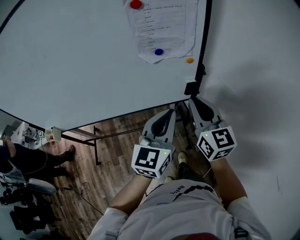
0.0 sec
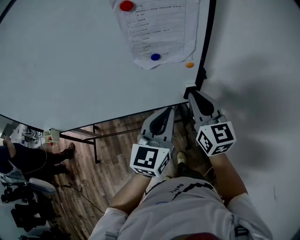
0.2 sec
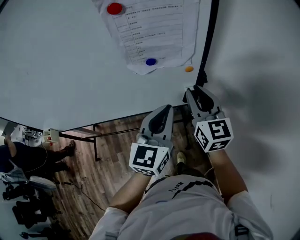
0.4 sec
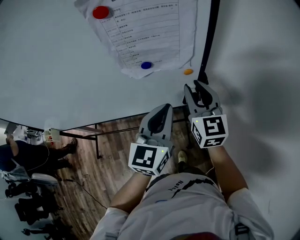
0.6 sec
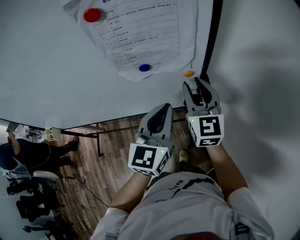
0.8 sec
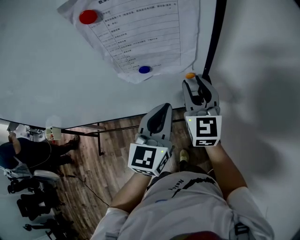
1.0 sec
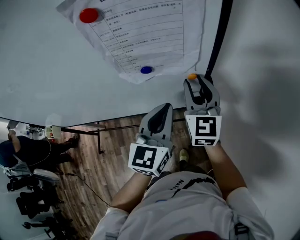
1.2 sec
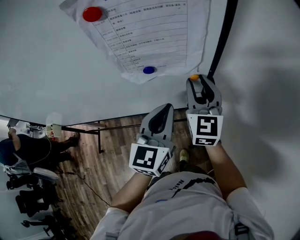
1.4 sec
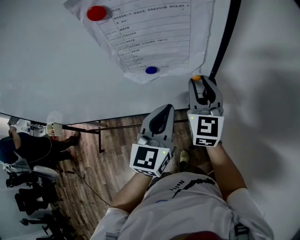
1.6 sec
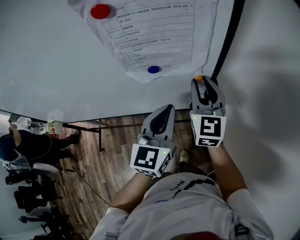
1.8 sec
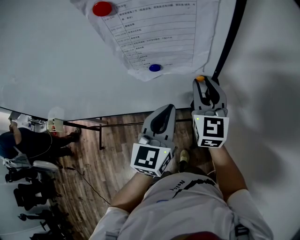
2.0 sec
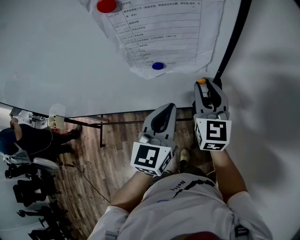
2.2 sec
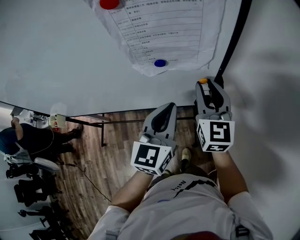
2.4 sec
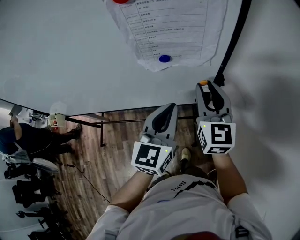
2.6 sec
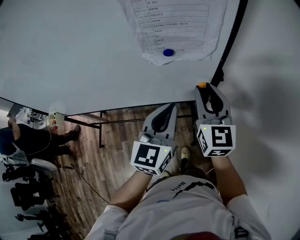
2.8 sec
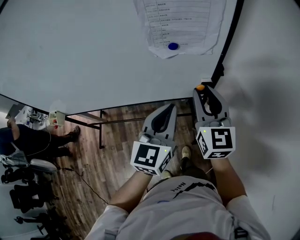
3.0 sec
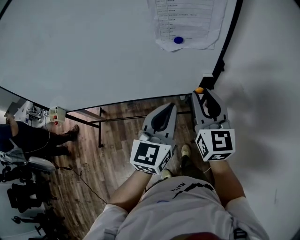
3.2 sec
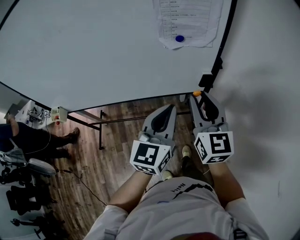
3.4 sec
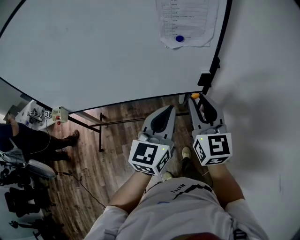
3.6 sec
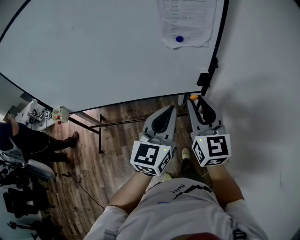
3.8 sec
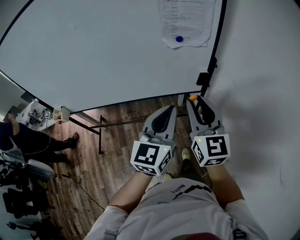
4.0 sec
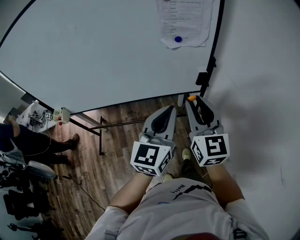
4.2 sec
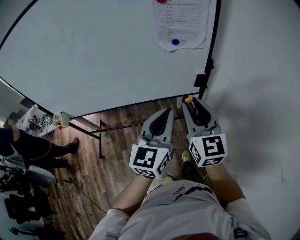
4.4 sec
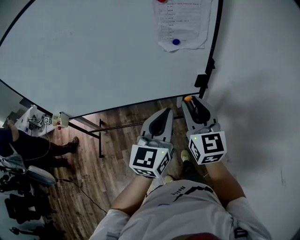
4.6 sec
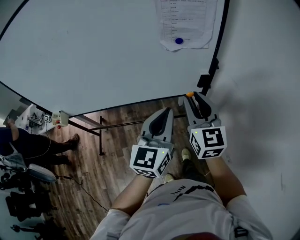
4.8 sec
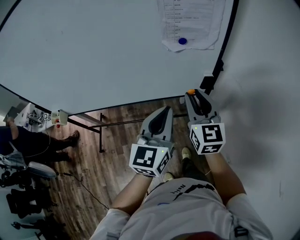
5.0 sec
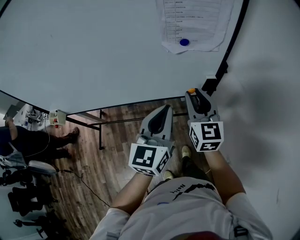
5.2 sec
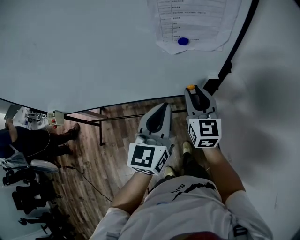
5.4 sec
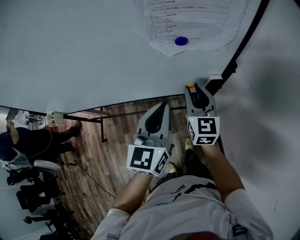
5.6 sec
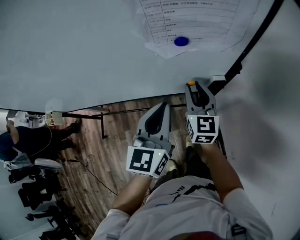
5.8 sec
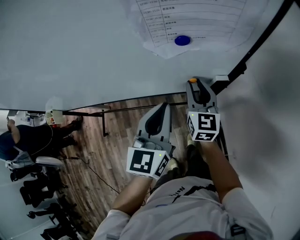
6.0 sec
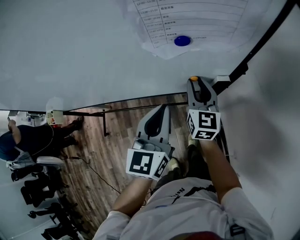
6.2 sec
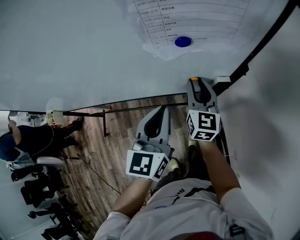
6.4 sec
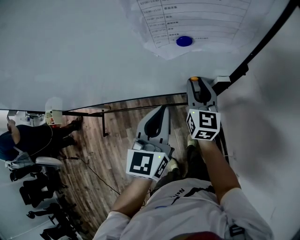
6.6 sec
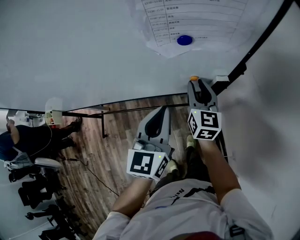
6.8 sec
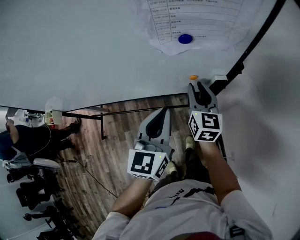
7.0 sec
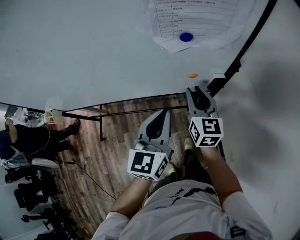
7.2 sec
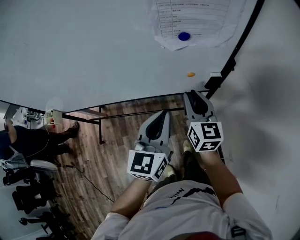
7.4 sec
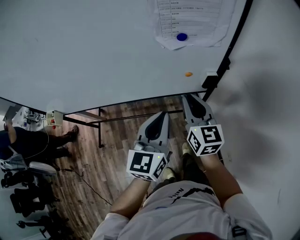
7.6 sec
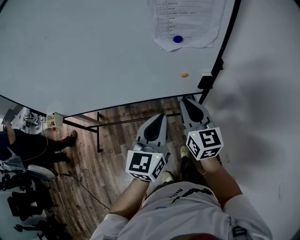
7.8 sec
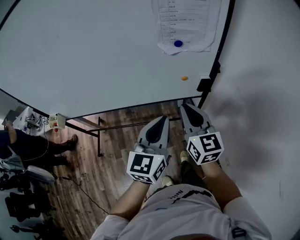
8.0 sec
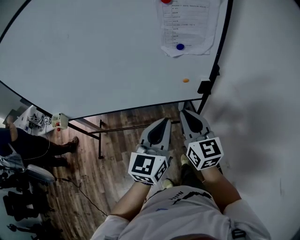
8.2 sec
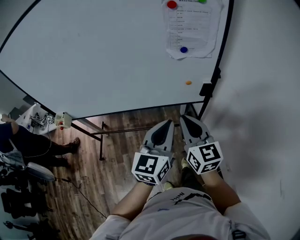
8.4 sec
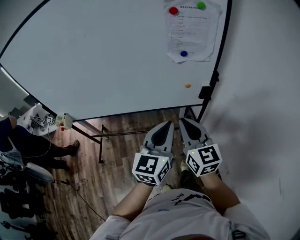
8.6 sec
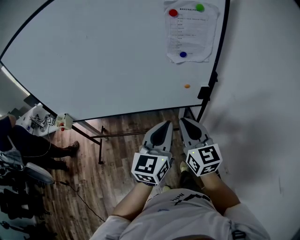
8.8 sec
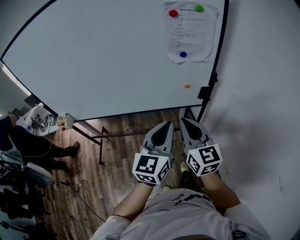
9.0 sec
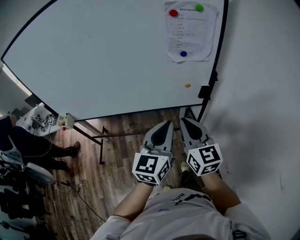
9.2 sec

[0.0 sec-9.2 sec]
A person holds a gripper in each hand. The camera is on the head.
0.0 sec to 1.6 sec: Both grippers move forward, roughly 15 cm. The right gripper opens.
1.6 sec to 3.0 sec: Both grippers travel together backward, some 10 cm.
3.0 sec to 4.6 sec: The left gripper travels backward by approximately 10 cm; the right gripper moves backward and to the left, approximately 15 cm.
4.6 sec to 6.2 sec: The left gripper travels forward and downward by some 20 cm; the right gripper goes approximately 30 cm forward and downward.
6.2 sec to 7.6 sec: The left gripper is displaced backward by approximately 10 cm; the right gripper goes about 15 cm backward and upward.
7.6 sec to 9.2 sec: The two grippers go about 15 cm backward and upward.

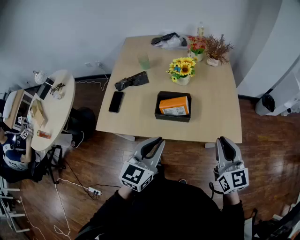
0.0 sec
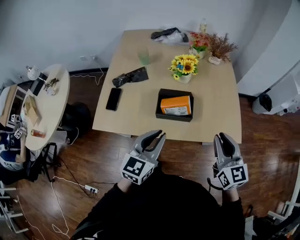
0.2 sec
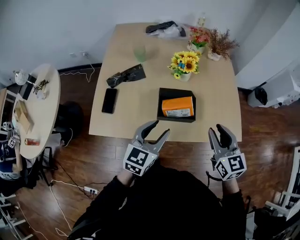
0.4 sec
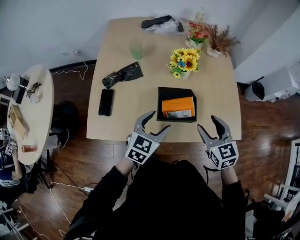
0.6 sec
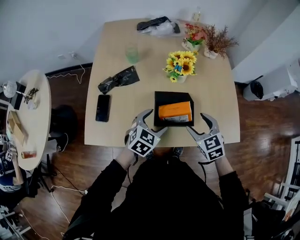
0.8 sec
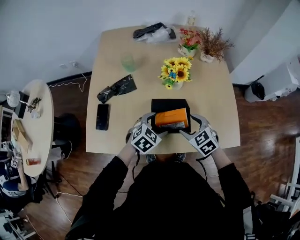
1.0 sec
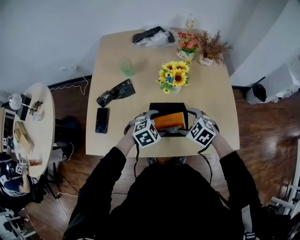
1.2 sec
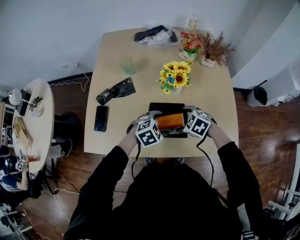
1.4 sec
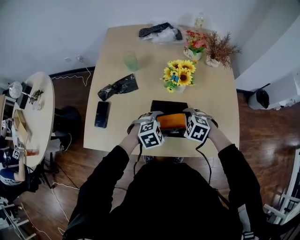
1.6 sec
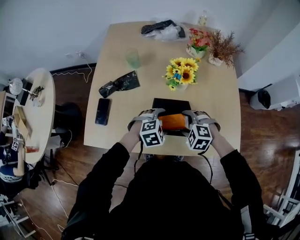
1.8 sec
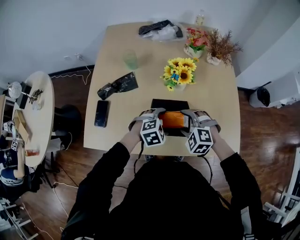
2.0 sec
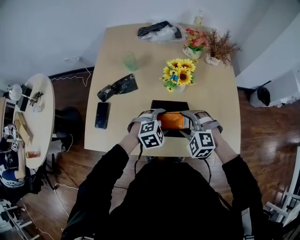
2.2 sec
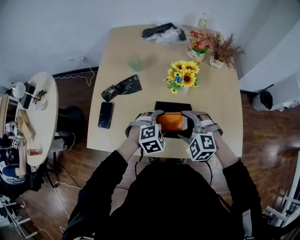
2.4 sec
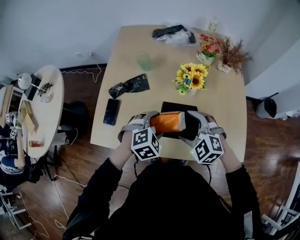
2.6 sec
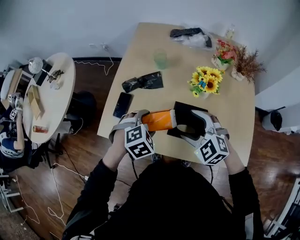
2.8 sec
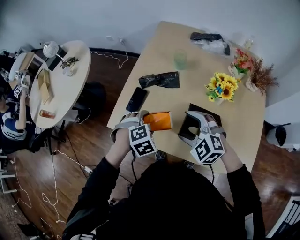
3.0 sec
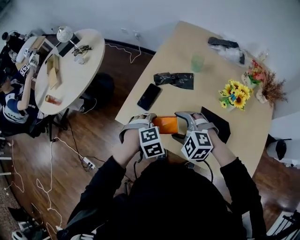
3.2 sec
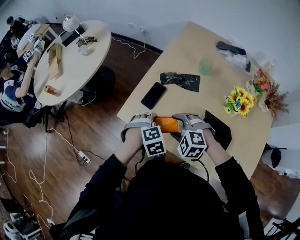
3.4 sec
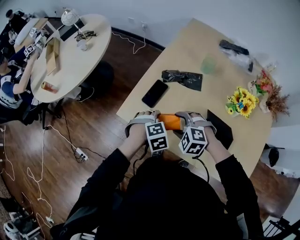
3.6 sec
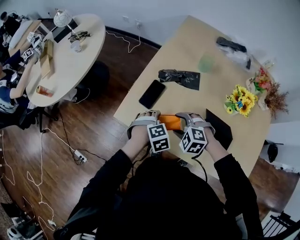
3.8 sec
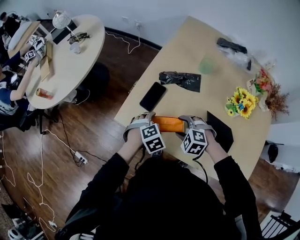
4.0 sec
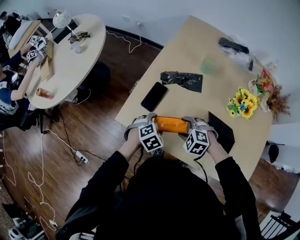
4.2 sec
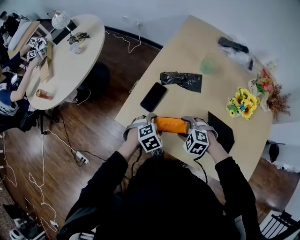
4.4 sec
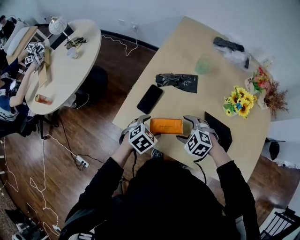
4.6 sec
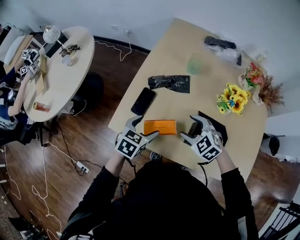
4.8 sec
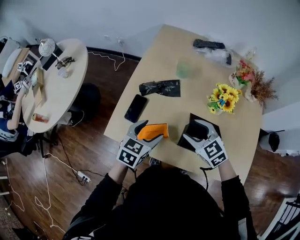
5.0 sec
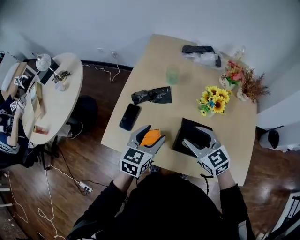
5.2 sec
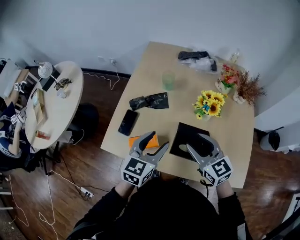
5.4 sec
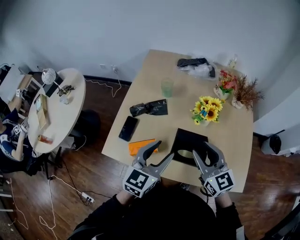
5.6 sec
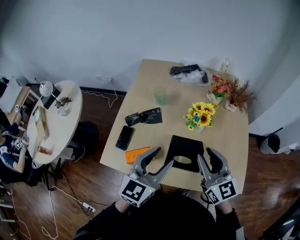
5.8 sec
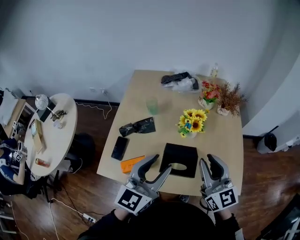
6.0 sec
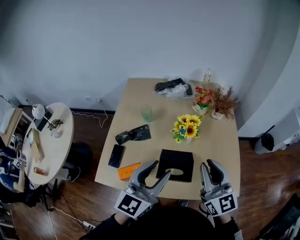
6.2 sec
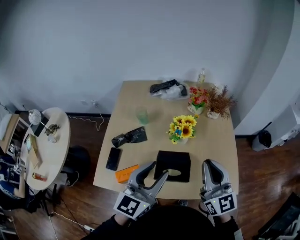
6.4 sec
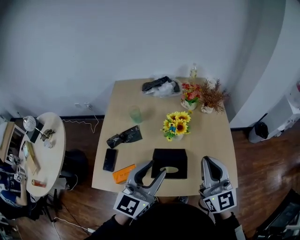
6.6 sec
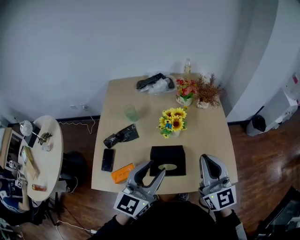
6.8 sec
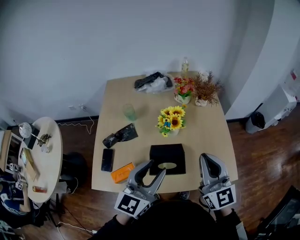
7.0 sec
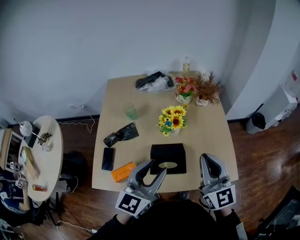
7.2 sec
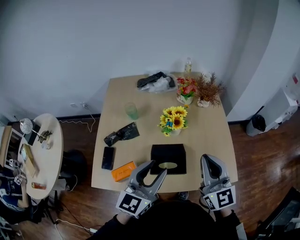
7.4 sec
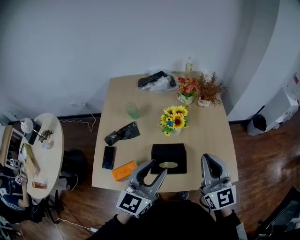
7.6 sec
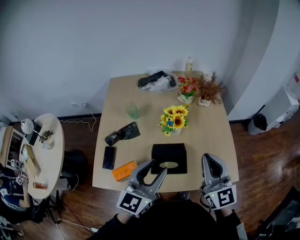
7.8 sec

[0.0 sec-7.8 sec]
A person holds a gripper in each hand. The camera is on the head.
0.0 sec to 1.6 sec: The left gripper shifts by approximately 30 cm, points its fingers about 40 degrees further downward, and opens up, while the right gripper ends up roughly 40 cm from where it was, points its fingers about 60 degrees further downward, and opens.
1.6 sec to 3.2 sec: The left gripper changes place by some 25 cm, and swivels approximately 40 degrees; the right gripper changes place by approximately 25 cm, and swivels about 40 degrees.
3.2 sec to 4.6 sec: The right gripper is displaced downward by roughly 10 cm; the left gripper heads downward, covering some 5 cm, and changes its angle by roughly 30 degrees.
4.6 sec to 6.2 sec: Both grippers move upward and to the right, about 40 cm. The right gripper tips its fingers upward by roughly 60 degrees, and closes. Meanwhile the left gripper angles its fingers upward, by approximately 60 degrees, and closes its fingers.
6.2 sec to 7.8 sec: The grippers move only a little.

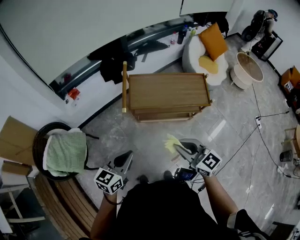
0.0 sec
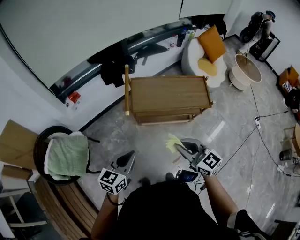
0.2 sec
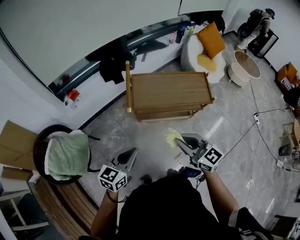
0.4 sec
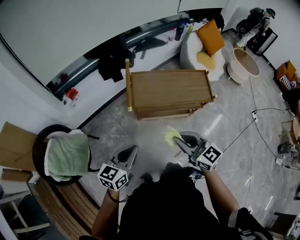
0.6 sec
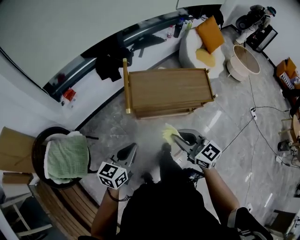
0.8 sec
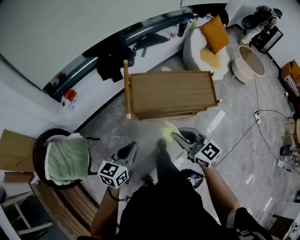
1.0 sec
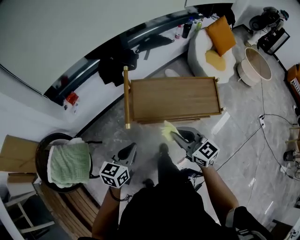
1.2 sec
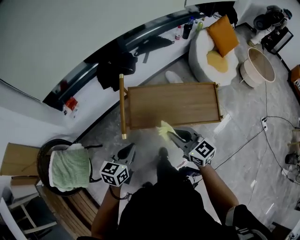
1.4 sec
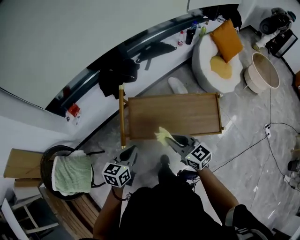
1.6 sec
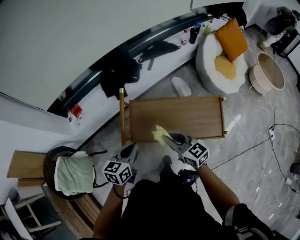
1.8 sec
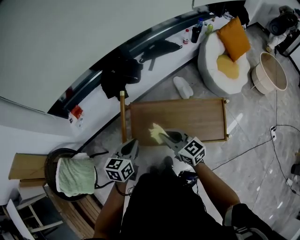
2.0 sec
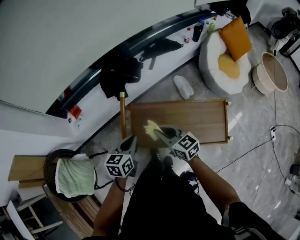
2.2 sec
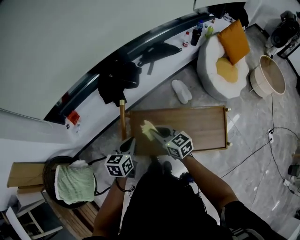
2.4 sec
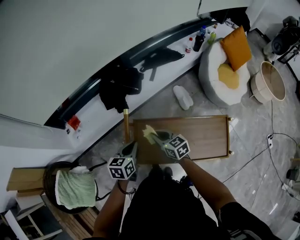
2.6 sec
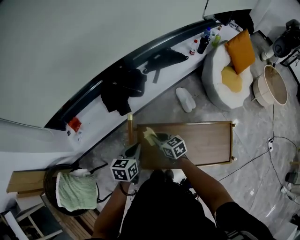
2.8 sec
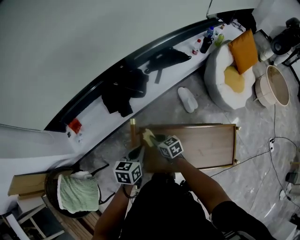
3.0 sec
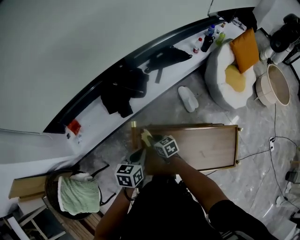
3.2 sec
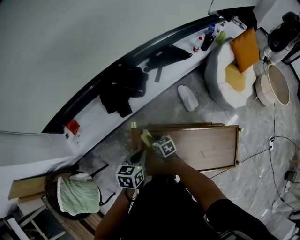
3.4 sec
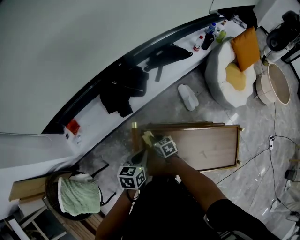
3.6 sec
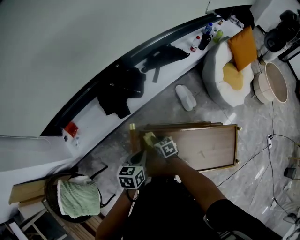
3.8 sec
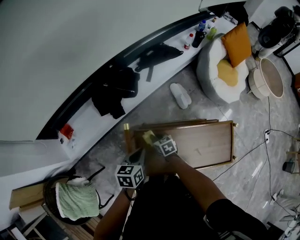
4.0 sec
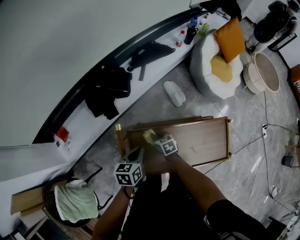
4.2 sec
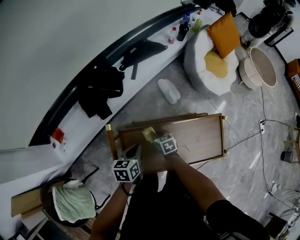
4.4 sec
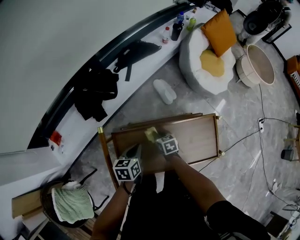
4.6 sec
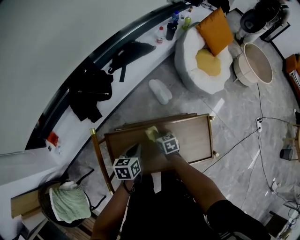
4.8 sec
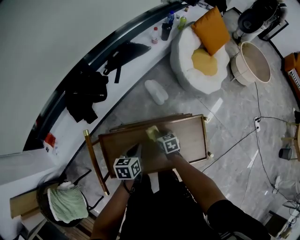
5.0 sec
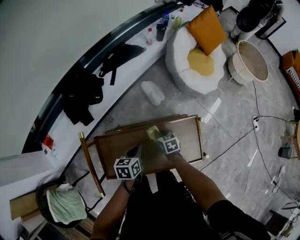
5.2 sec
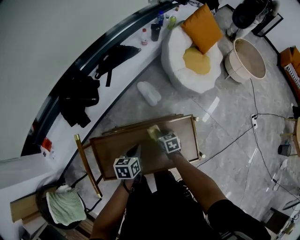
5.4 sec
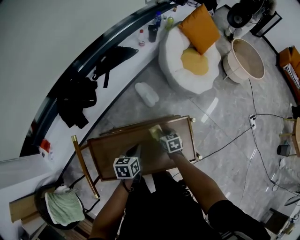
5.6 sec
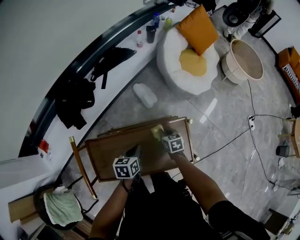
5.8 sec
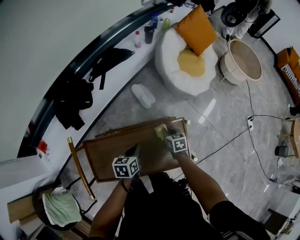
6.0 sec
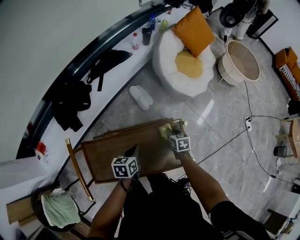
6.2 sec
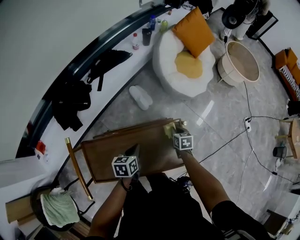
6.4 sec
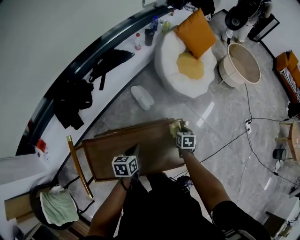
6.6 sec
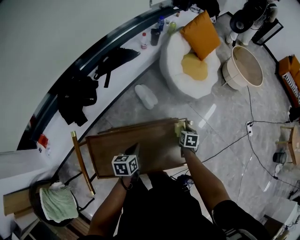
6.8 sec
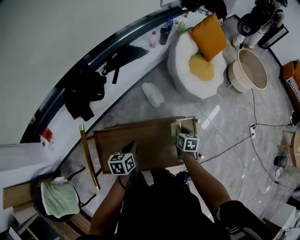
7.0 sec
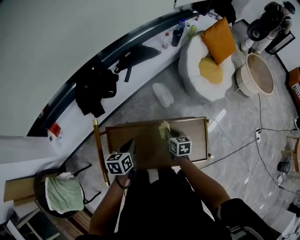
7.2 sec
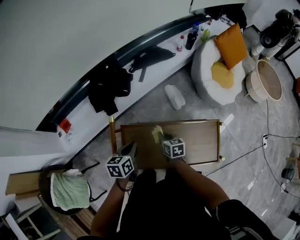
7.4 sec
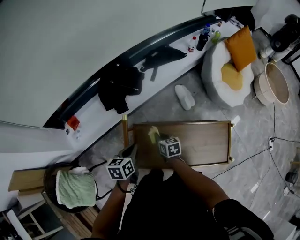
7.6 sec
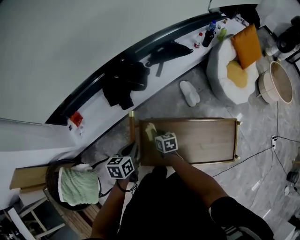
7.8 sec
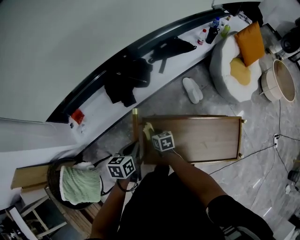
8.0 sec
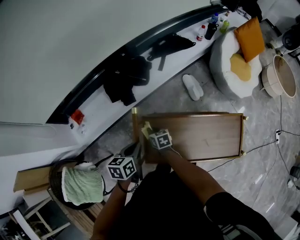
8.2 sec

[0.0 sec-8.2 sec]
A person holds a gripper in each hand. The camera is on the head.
0.0 sec to 1.6 sec: The two grippers go approximately 25 cm forward.
1.6 sec to 3.2 sec: The left gripper is displaced forward by about 25 cm, while the right gripper heads forward and downward, covering approximately 40 cm, and swivels approximately 30 degrees.
3.2 sec to 5.0 sec: The two grippers go some 25 cm to the right. The right gripper changes its angle by approximately 20 degrees.
5.0 sec to 6.6 sec: The left gripper heads to the right, covering about 10 cm, while the right gripper heads to the right, covering roughly 25 cm, and rotates approximately 20 degrees.
6.6 sec to 8.2 sec: The left gripper moves about 35 cm; the right gripper moves roughly 60 cm, and rotates approximately 40 degrees.
